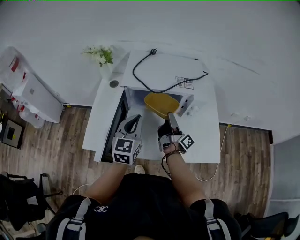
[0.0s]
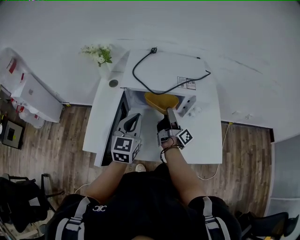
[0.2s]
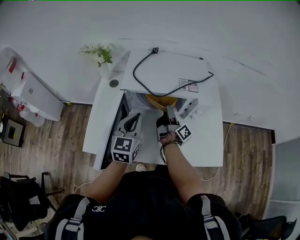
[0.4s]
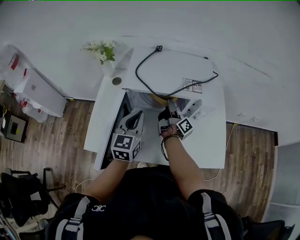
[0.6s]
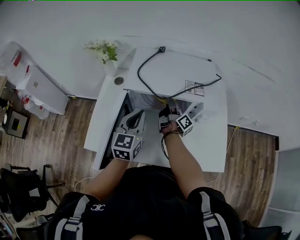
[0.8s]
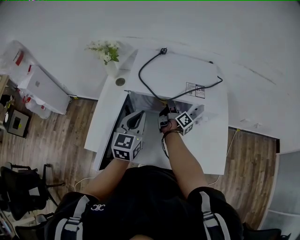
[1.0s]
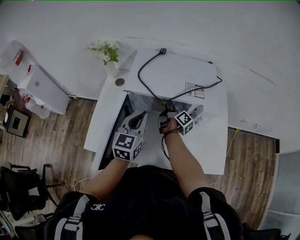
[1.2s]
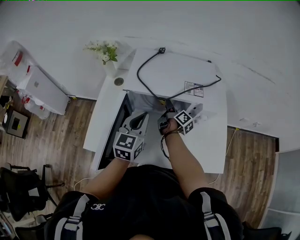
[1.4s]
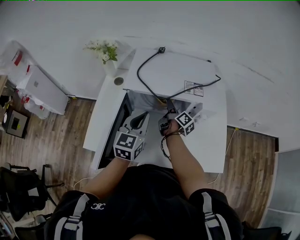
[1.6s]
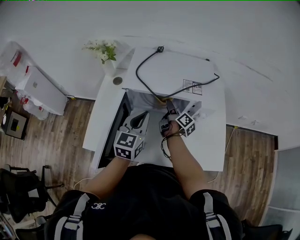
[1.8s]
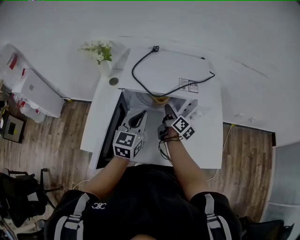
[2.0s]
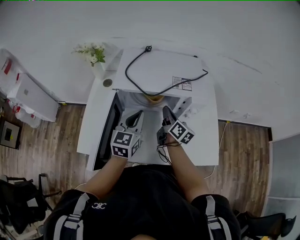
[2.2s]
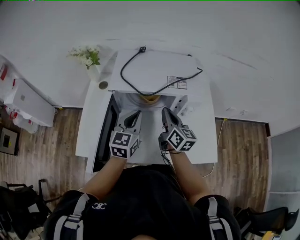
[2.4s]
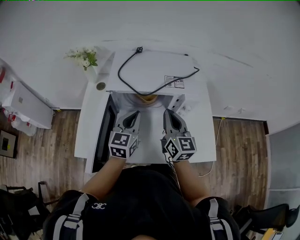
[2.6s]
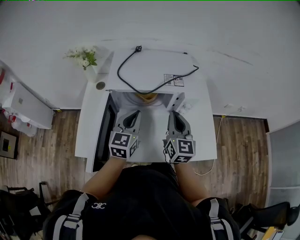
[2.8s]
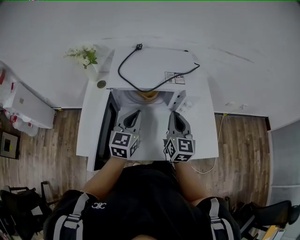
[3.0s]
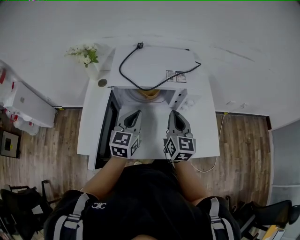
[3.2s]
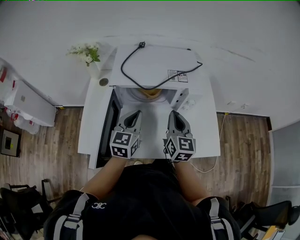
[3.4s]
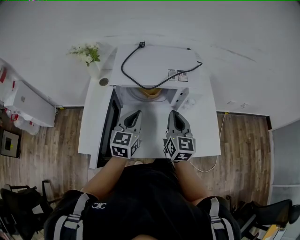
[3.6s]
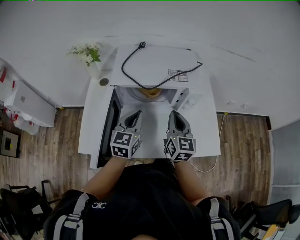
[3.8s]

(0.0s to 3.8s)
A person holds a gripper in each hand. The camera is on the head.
0.0s - 1.2s: The left gripper ends up approximately 10 cm from where it was.

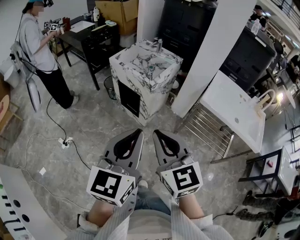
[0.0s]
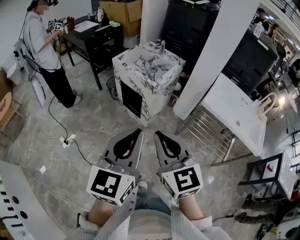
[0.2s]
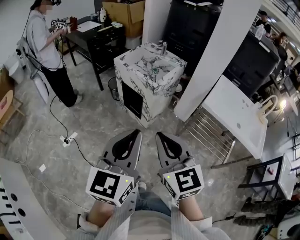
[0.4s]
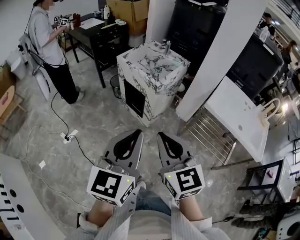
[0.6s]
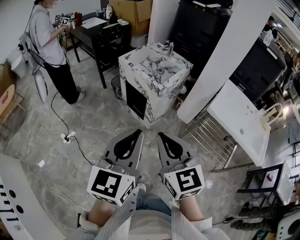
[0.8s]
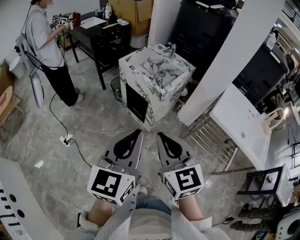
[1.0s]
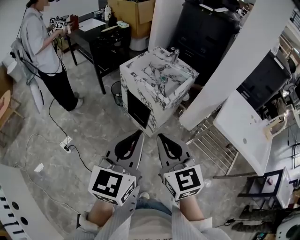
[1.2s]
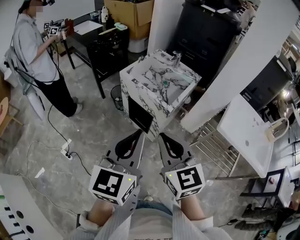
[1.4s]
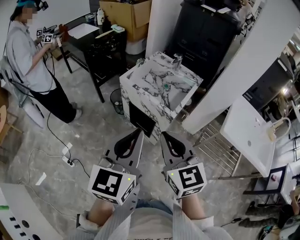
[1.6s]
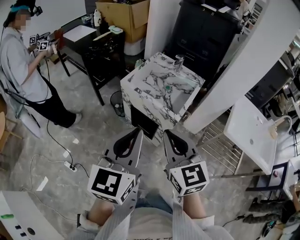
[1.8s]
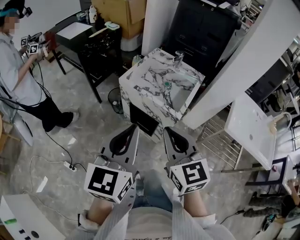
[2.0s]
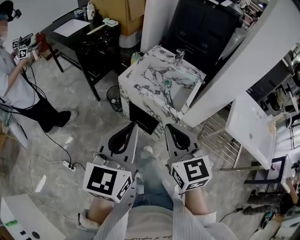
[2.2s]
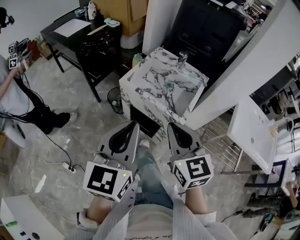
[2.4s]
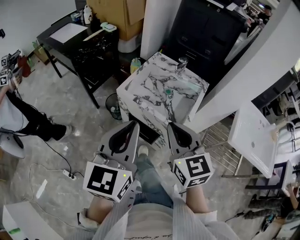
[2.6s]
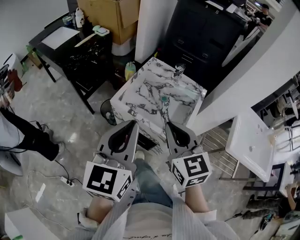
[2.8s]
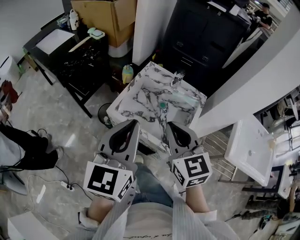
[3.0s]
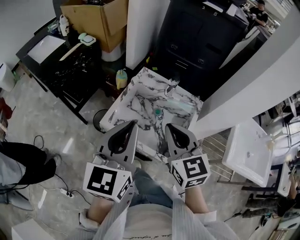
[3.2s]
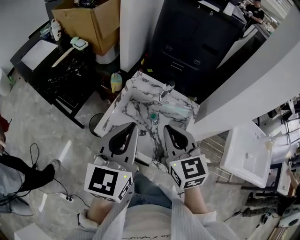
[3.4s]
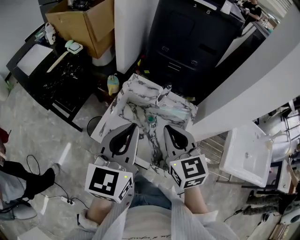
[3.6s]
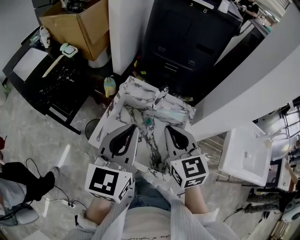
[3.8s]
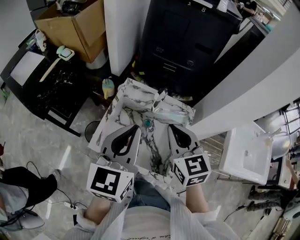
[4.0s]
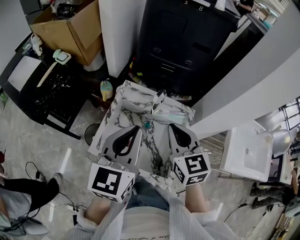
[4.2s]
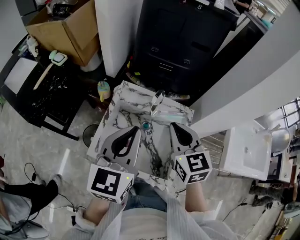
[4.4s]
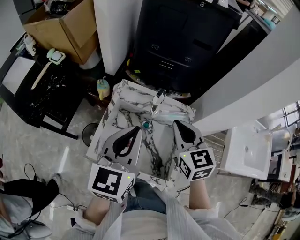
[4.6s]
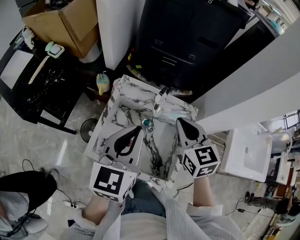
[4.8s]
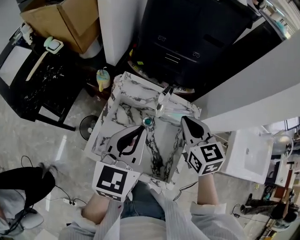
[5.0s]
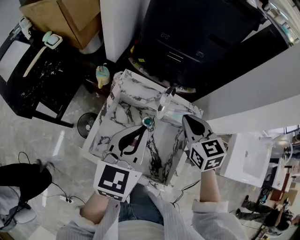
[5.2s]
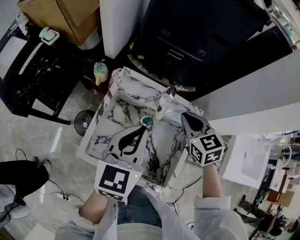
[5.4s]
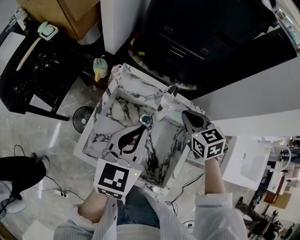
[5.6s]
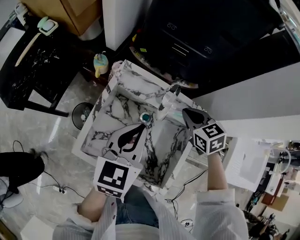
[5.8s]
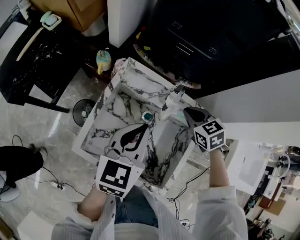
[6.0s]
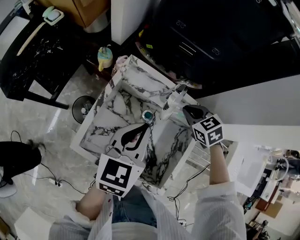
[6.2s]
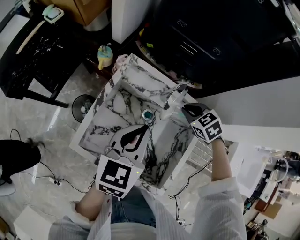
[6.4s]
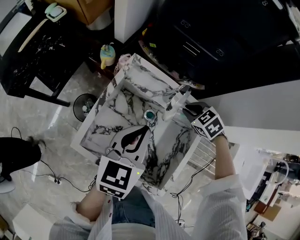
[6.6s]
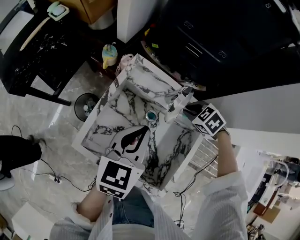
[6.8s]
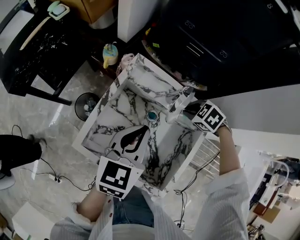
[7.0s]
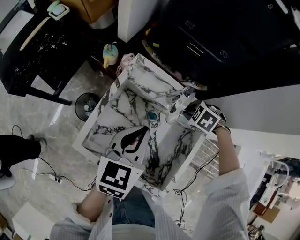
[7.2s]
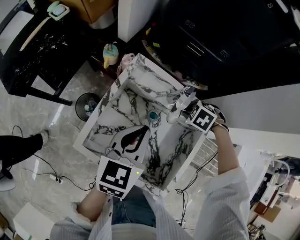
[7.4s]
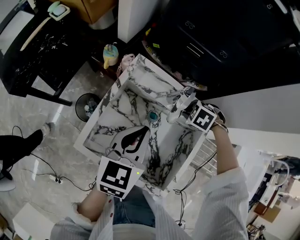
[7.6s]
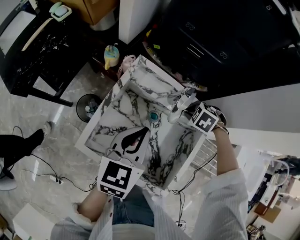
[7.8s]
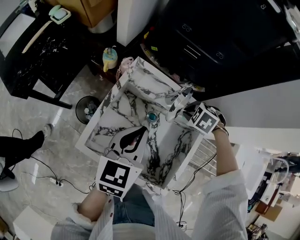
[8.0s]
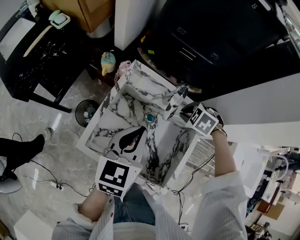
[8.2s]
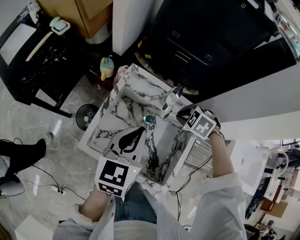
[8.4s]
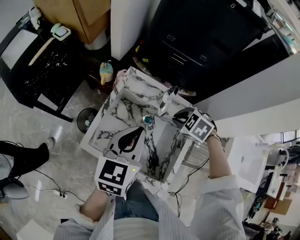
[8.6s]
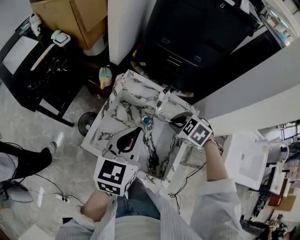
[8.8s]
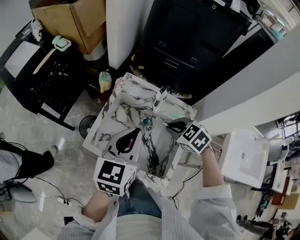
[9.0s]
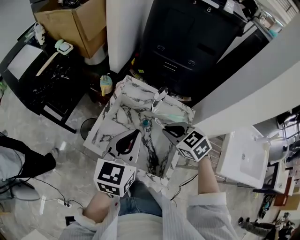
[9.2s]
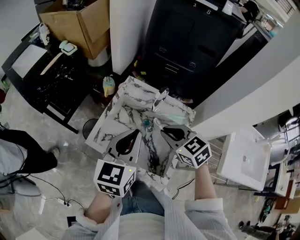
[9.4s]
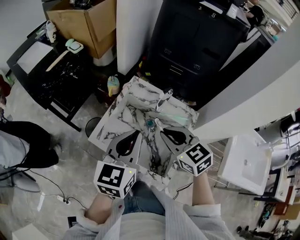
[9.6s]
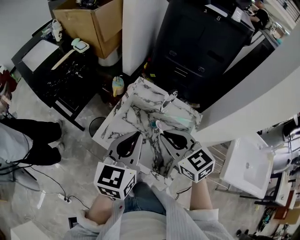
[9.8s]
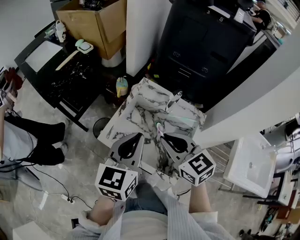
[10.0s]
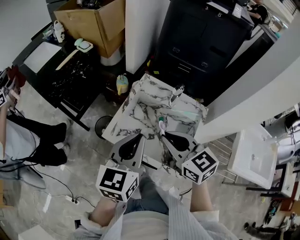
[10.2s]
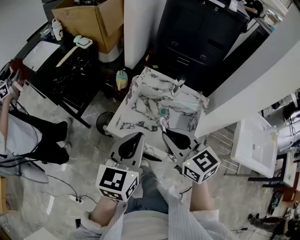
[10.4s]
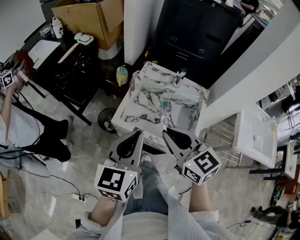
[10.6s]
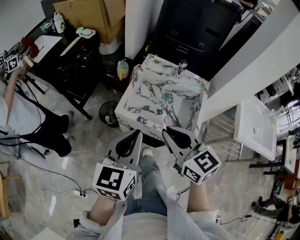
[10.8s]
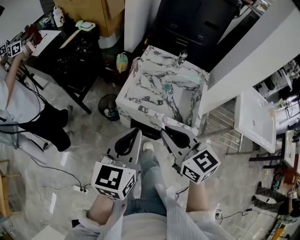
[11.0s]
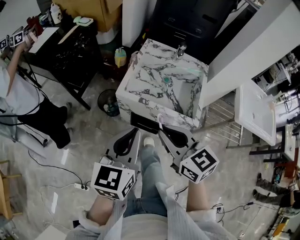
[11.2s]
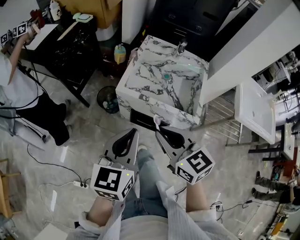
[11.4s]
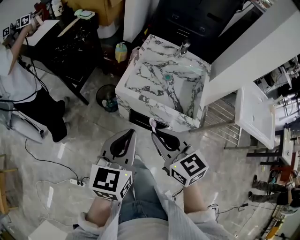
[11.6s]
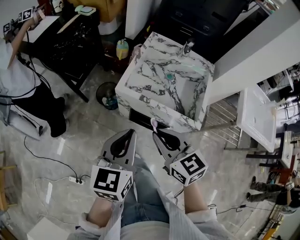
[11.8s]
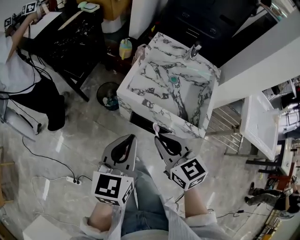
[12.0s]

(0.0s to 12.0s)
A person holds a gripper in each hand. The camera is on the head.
0.0s - 1.6s: The left gripper travels forward and to the left by roughly 25 cm, while the right gripper travels forward by roughly 25 cm.
1.6s - 3.0s: Both grippers move forward, roughly 30 cm.
3.0s - 4.4s: The right gripper is displaced forward and to the right by some 20 cm. The left gripper heads forward, covering roughly 20 cm.
4.4s - 6.0s: The grippers both shift downward and forward by some 20 cm. The right gripper turns by about 30 degrees.
6.0s - 7.6s: The right gripper goes roughly 10 cm downward, and angles its fingers downward, by approximately 40 degrees.
7.6s - 9.0s: The grippers both shift upward by about 10 cm. The right gripper rotates roughly 30 degrees.
9.0s - 10.4s: The left gripper heads to the left and backward, covering approximately 15 cm. Meanwhile the right gripper is displaced to the left, upward and backward by about 25 cm, and angles its fingers upward, by about 40 degrees.
10.4s - 12.0s: The left gripper moves backward, to the left and downward, approximately 20 cm; the right gripper travels backward, downward and to the left by roughly 20 cm.

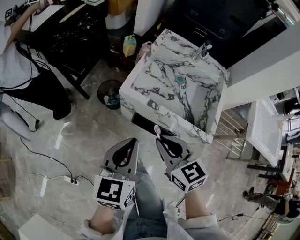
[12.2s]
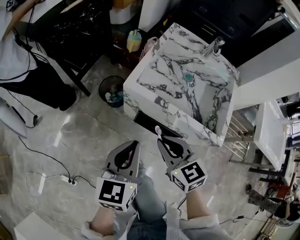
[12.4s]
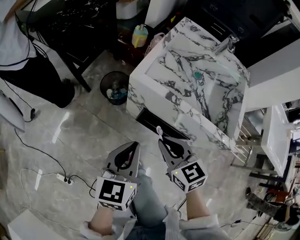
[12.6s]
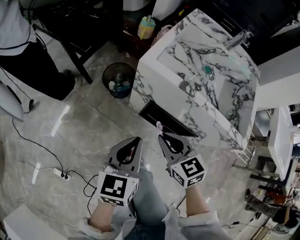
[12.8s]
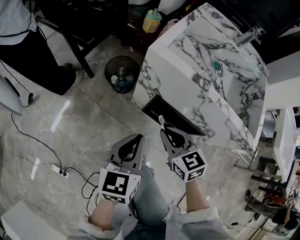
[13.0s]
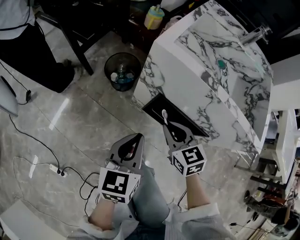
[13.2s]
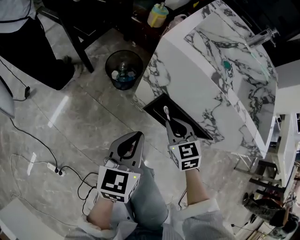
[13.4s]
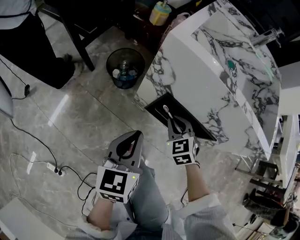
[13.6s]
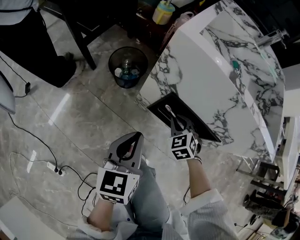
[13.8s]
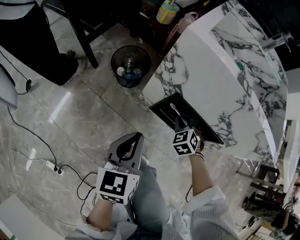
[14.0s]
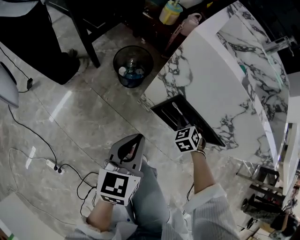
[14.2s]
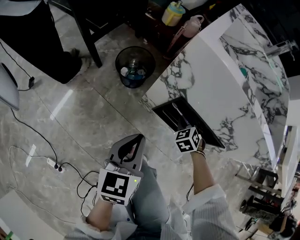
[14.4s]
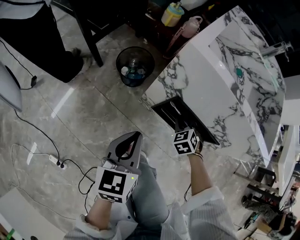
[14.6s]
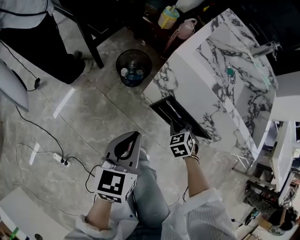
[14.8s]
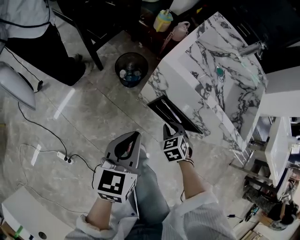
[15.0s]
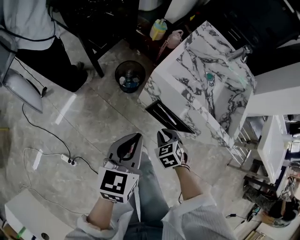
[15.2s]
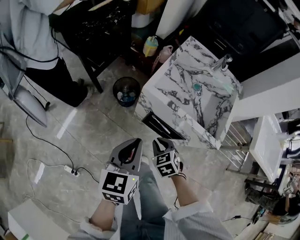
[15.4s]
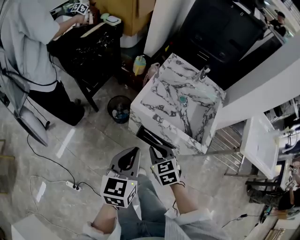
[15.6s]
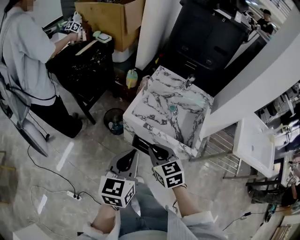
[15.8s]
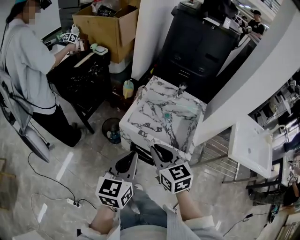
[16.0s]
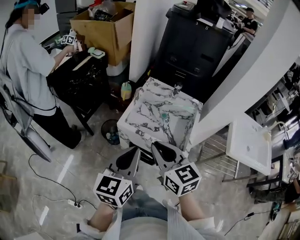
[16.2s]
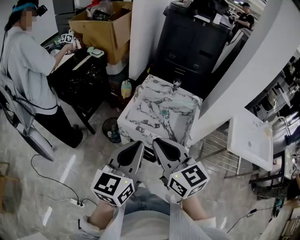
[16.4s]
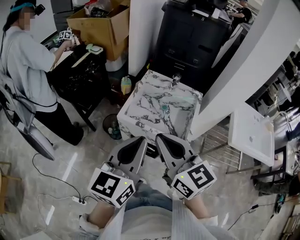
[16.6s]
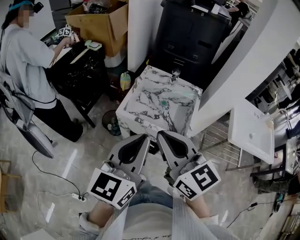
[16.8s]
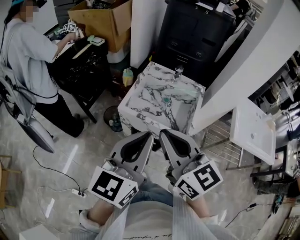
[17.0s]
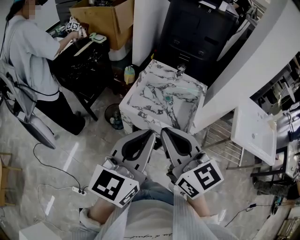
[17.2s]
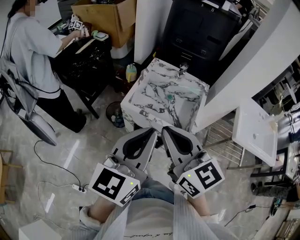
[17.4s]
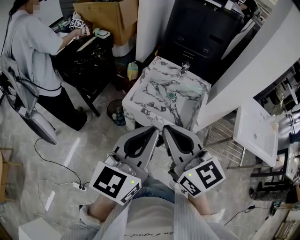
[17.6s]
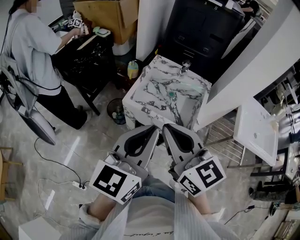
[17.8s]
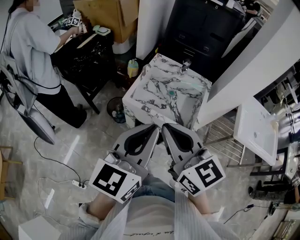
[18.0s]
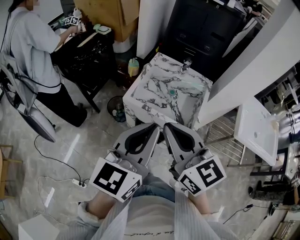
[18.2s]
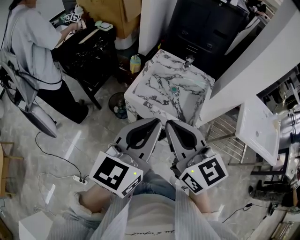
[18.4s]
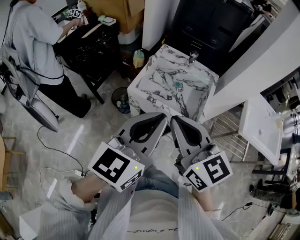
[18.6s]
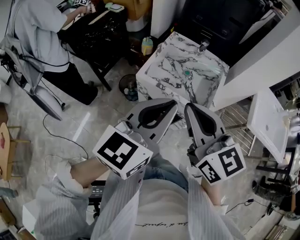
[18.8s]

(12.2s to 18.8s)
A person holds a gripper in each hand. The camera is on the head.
12.2s - 13.8s: Both grippers travel together downward, approximately 35 cm. The right gripper swivels roughly 40 degrees.
13.8s - 15.4s: The right gripper heads upward and backward, covering approximately 25 cm. Meanwhile the left gripper is displaced upward by approximately 25 cm.
15.4s - 17.2s: The right gripper travels upward by approximately 40 cm, and points its fingers roughly 50 degrees further upward. Meanwhile the left gripper moves upward and to the right, roughly 30 cm, and turns by roughly 30 degrees.
17.2s - 18.8s: The grippers move only a little.

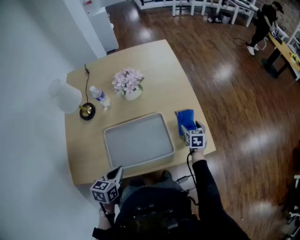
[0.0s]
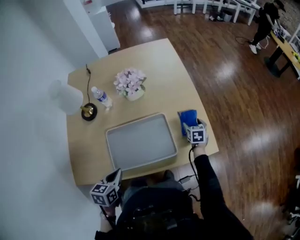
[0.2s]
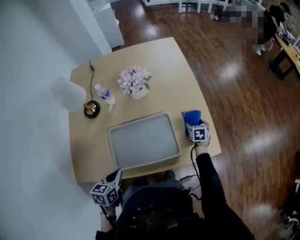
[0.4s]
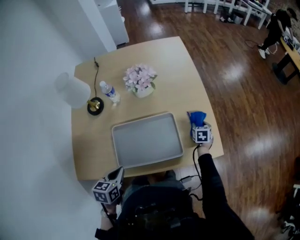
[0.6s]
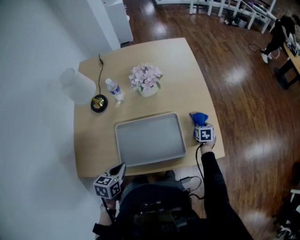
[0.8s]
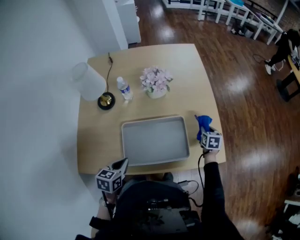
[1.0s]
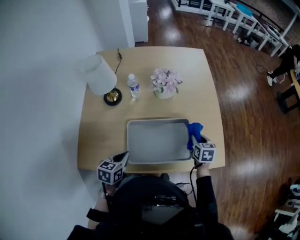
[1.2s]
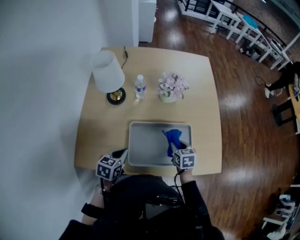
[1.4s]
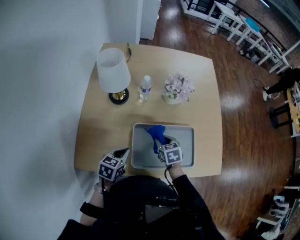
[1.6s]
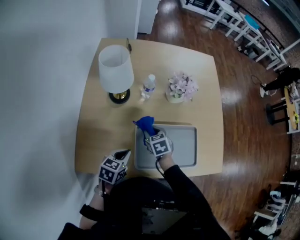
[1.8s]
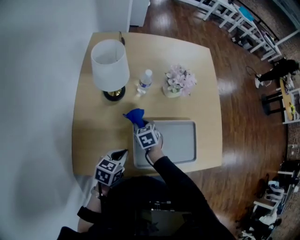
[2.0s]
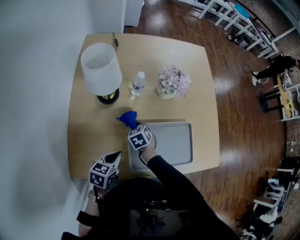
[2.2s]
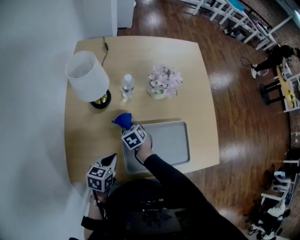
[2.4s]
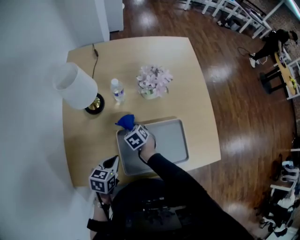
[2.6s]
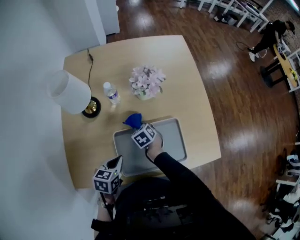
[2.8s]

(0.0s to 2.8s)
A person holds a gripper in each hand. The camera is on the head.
0.0s - 1.4s: The left gripper moves to the left, about 10 cm. The right gripper is displaced to the left by roughly 25 cm, swivels about 20 degrees, and closes up.
1.4s - 2.8s: The right gripper shifts roughly 15 cm to the left, forward and downward, and swivels approximately 20 degrees. Meanwhile the left gripper reaches about 5 cm to the left, then returns.
